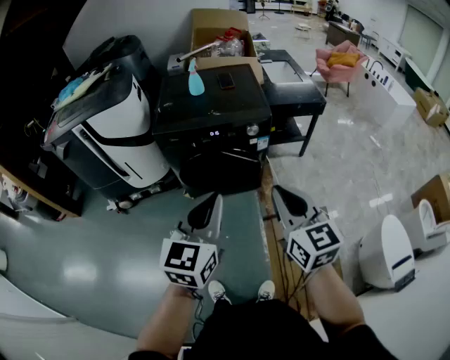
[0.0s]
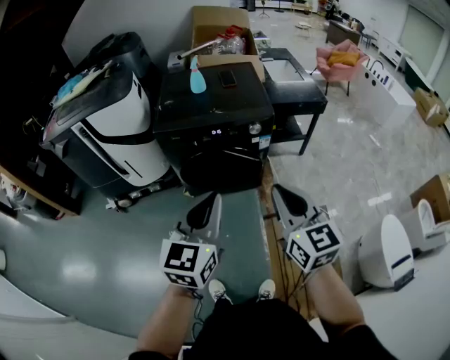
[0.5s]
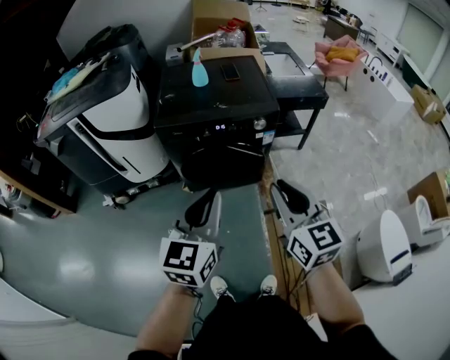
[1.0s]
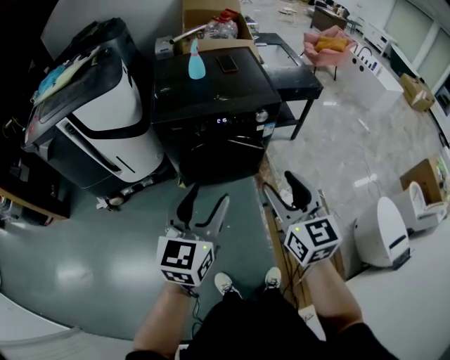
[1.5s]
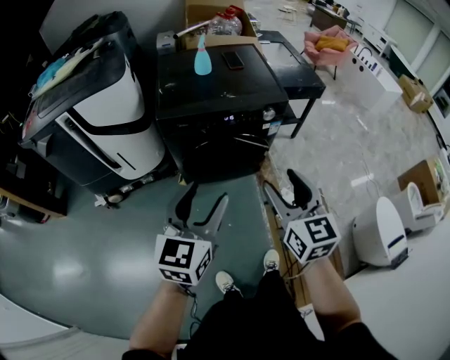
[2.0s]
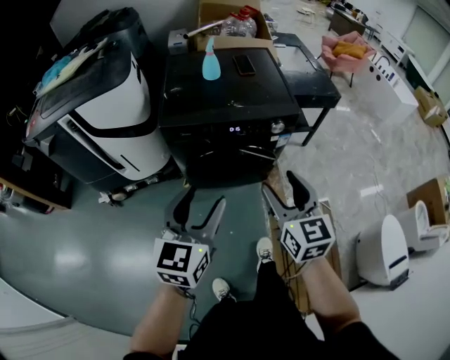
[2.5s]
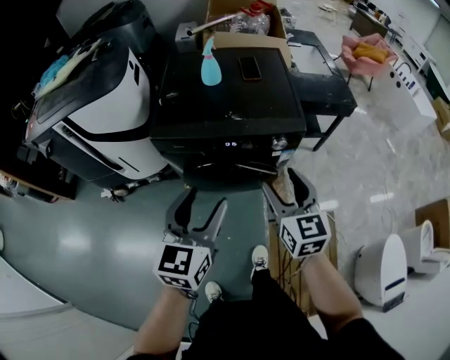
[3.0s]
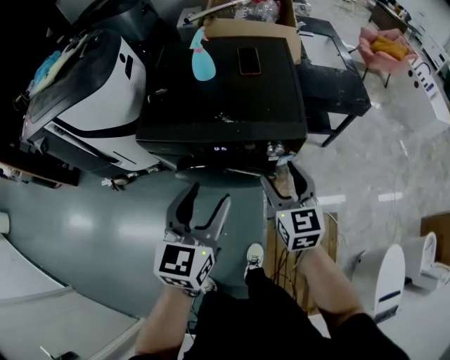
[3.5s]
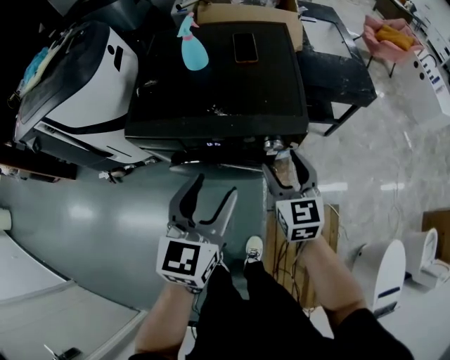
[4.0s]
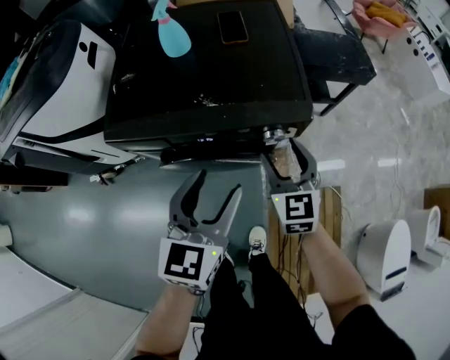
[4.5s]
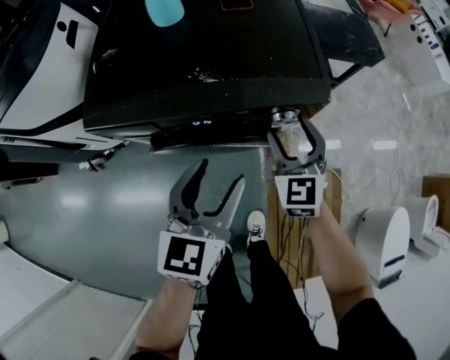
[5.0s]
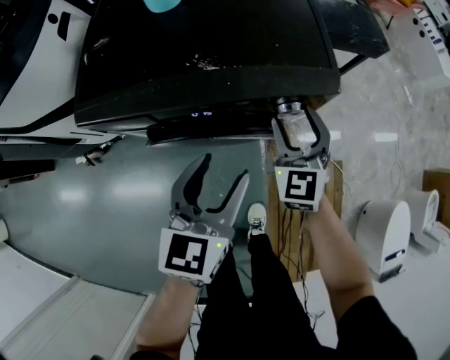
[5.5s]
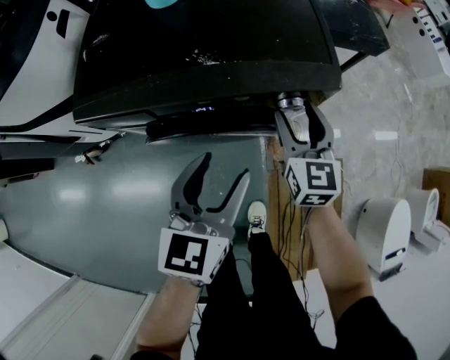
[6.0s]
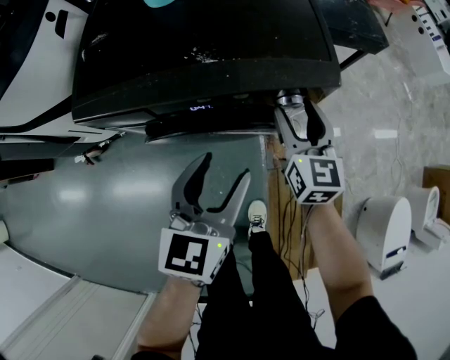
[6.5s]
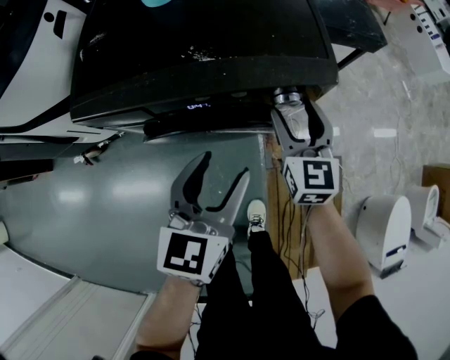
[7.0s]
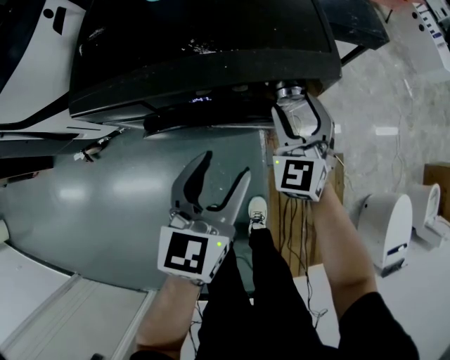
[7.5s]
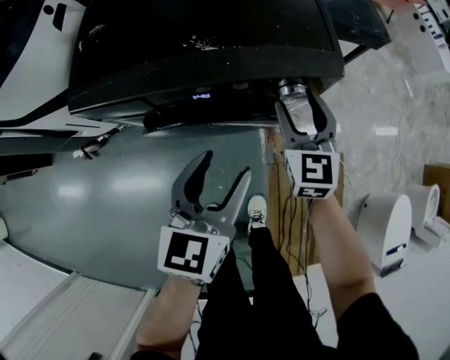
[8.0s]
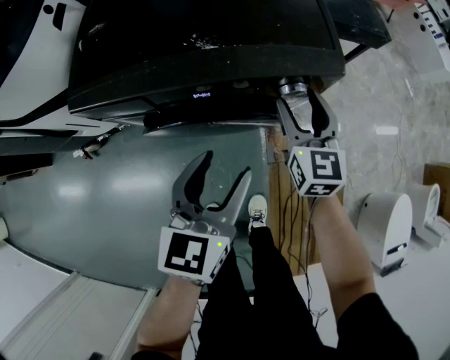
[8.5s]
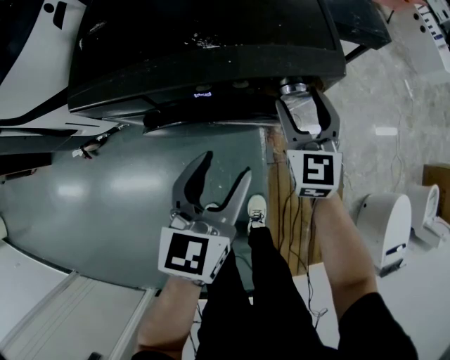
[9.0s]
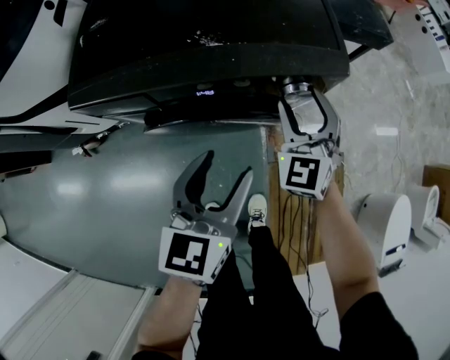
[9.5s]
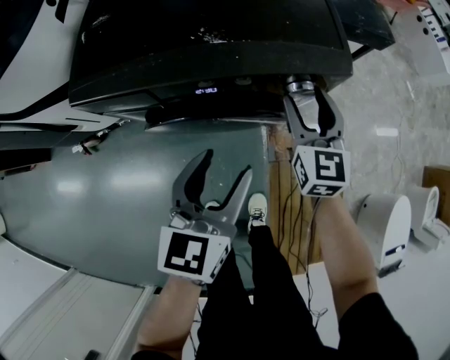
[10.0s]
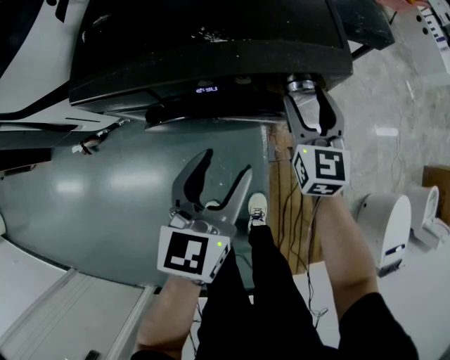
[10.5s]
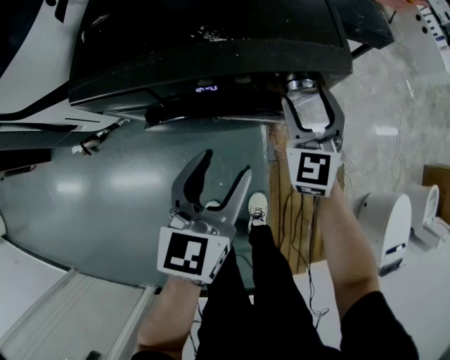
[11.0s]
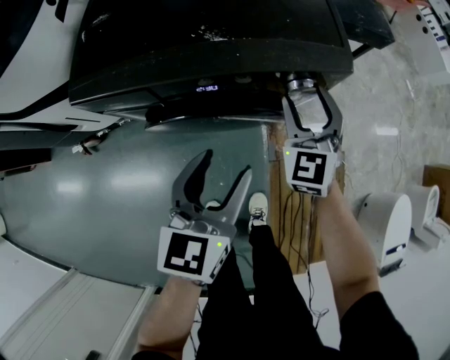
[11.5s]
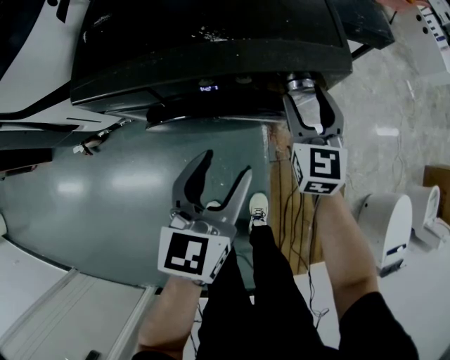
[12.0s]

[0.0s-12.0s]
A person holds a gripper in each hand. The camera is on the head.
0.0s to 2.0s: The right gripper goes roughly 15 cm to the left and forward, and opens. Meanwhile the left gripper goes about 15 cm to the left, and opens up.
2.0s to 4.0s: The right gripper shifts roughly 40 cm forward, downward and to the right. The left gripper is displaced forward and to the right by about 35 cm.
4.0s to 6.0s: The right gripper travels downward and forward by roughly 15 cm; the left gripper shifts approximately 15 cm downward.

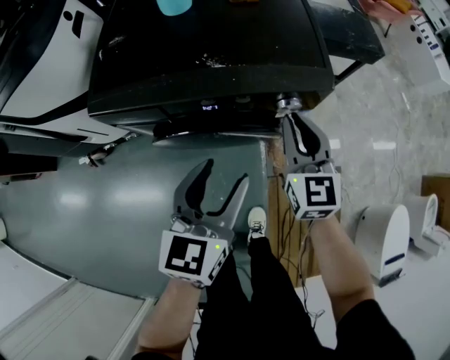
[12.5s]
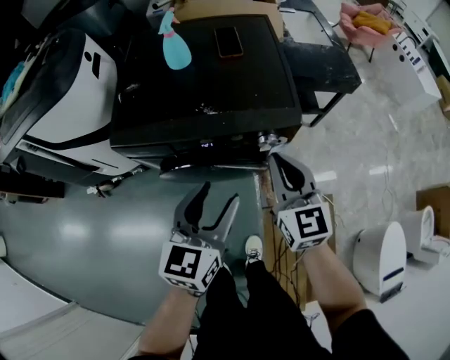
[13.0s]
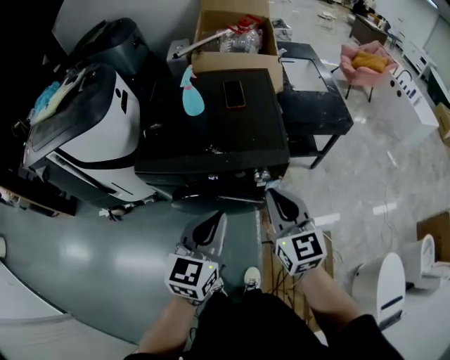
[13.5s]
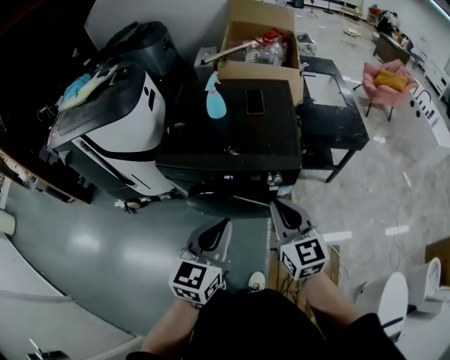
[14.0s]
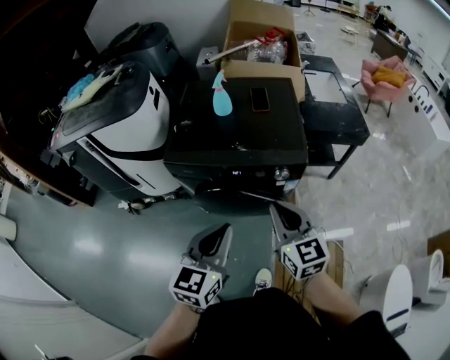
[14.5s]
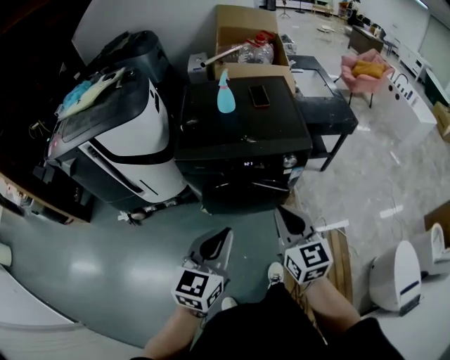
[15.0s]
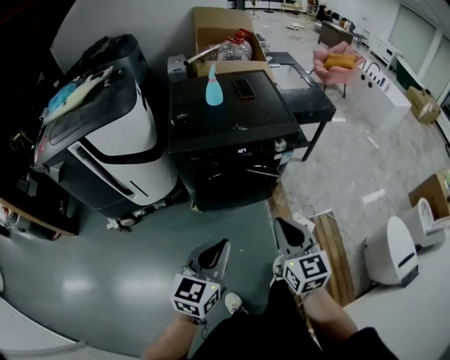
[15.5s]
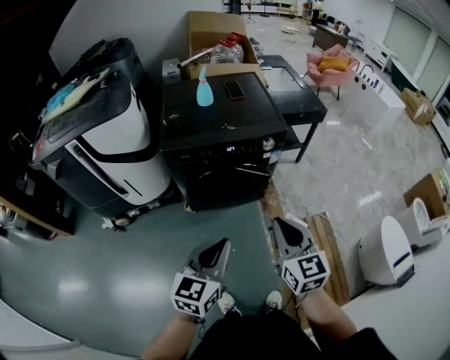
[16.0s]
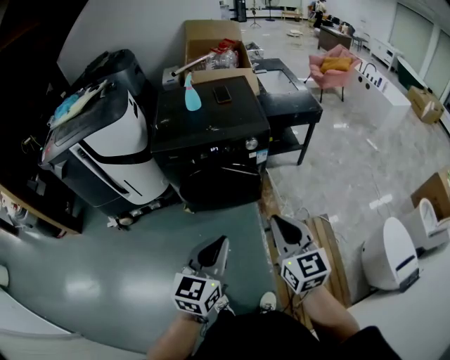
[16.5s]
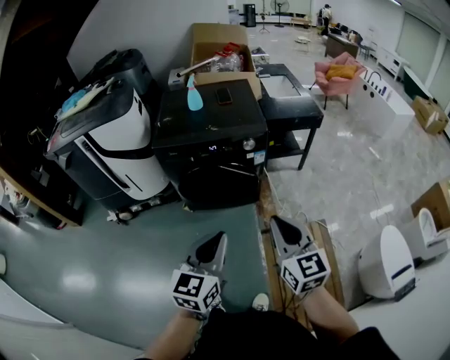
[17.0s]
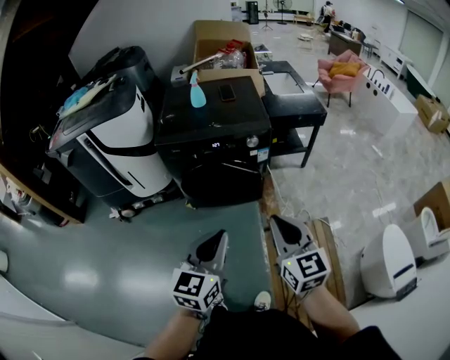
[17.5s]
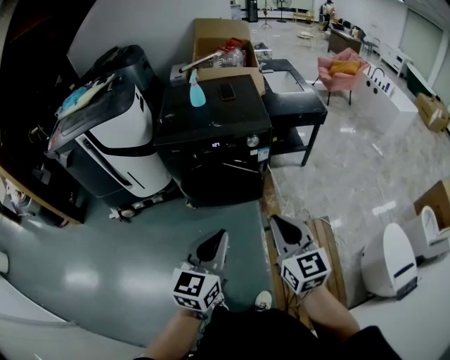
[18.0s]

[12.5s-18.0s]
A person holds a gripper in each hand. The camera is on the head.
12.5s to 14.5s: Both grippers move upward and backward, roughly 25 cm. The left gripper closes.
14.5s to 16.0s: The left gripper is displaced backward and to the left by about 20 cm. Meanwhile the right gripper heads backward, covering about 25 cm.
16.0s to 18.0s: Both grippers move to the right and backward, some 15 cm.

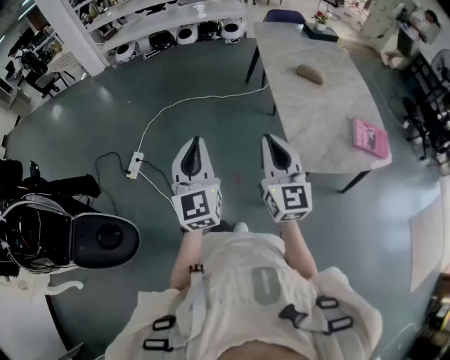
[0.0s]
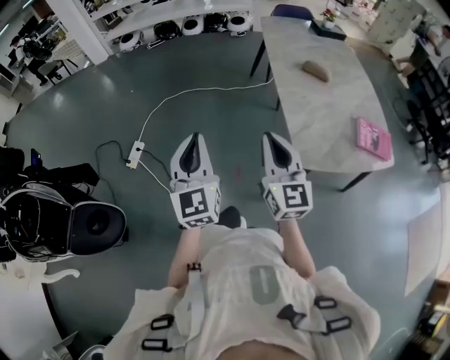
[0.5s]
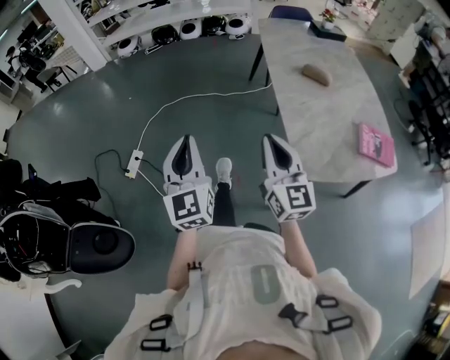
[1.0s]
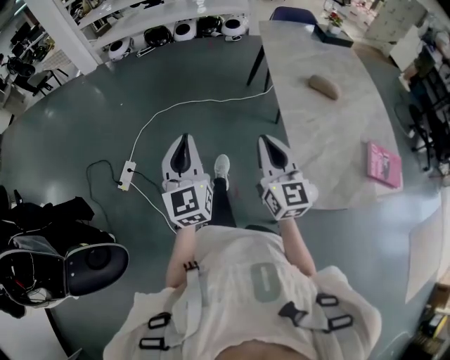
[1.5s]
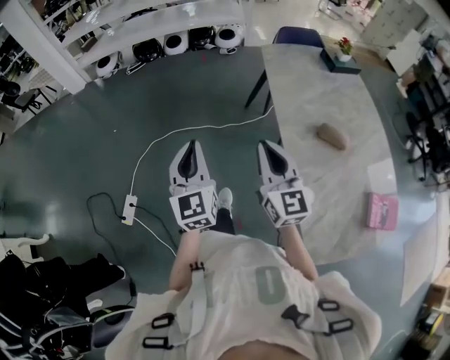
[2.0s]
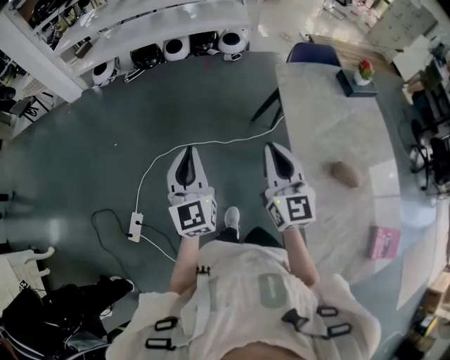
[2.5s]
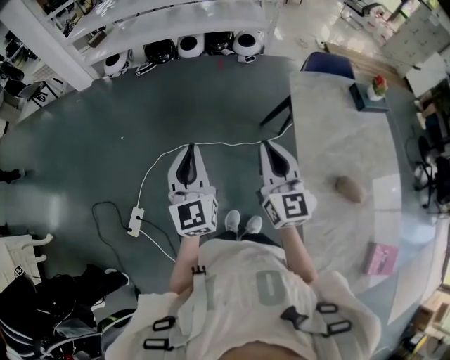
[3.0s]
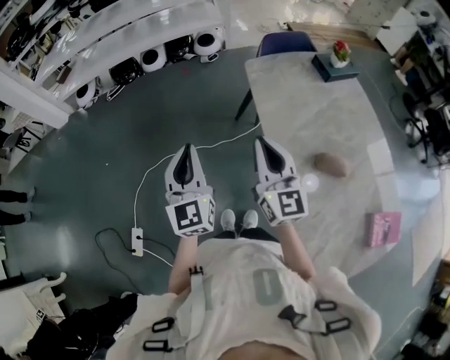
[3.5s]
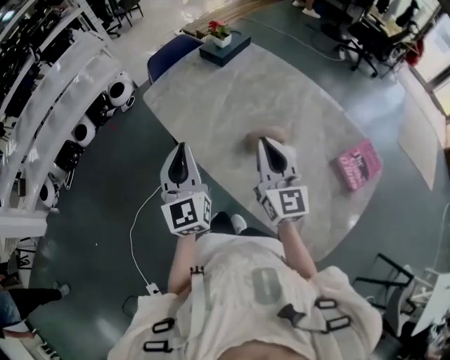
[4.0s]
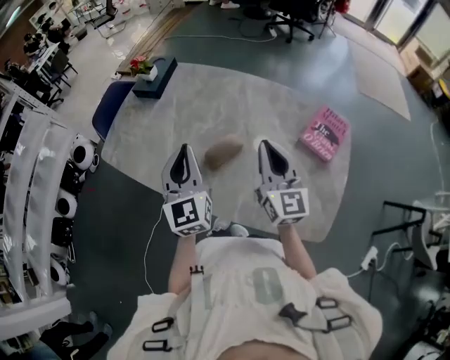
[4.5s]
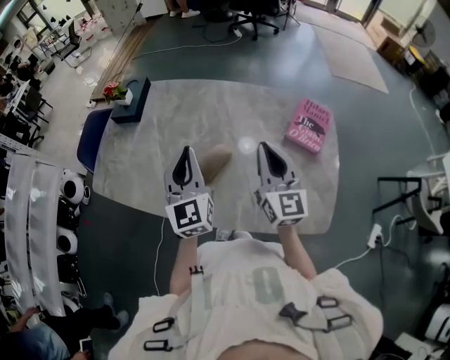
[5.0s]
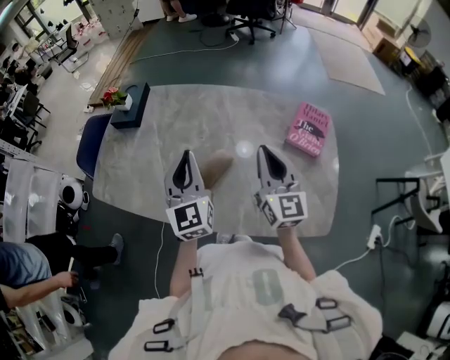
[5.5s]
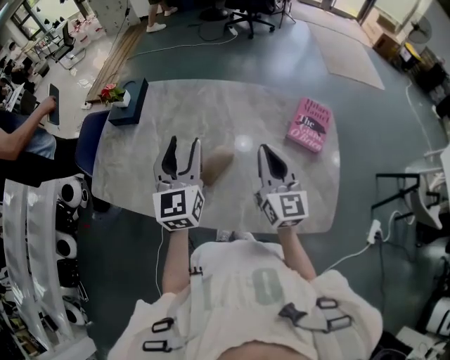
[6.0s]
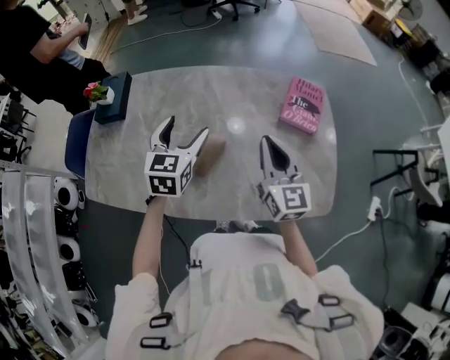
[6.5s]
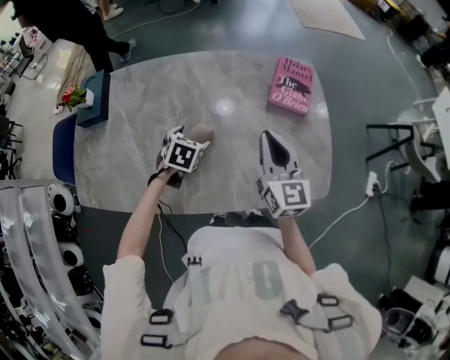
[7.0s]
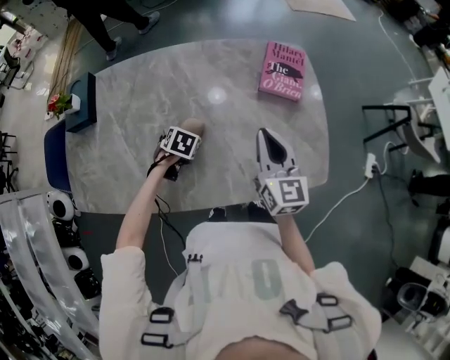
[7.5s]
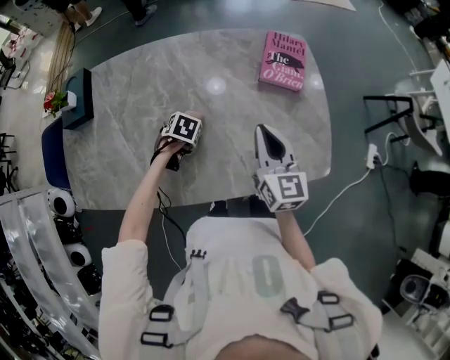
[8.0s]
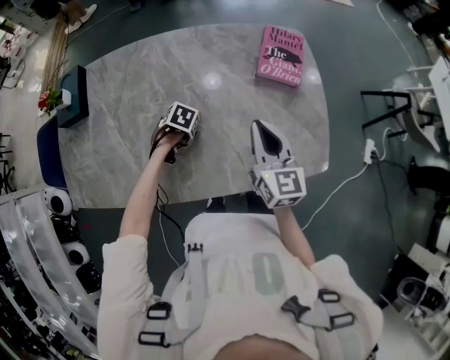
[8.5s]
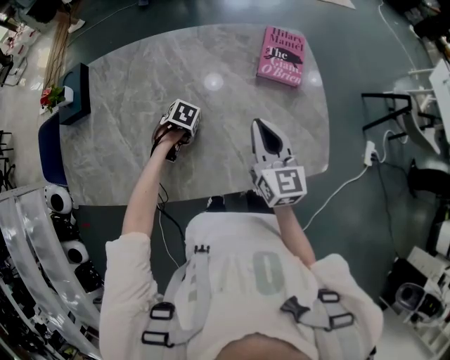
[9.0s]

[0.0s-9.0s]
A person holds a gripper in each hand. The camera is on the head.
0.0s to 2.0s: The pair of grippers is taken forward, roughly 40 cm.
2.0s to 4.5s: The left gripper moves about 50 cm, and swivels roughly 60 degrees. The right gripper moves approximately 40 cm, and swivels roughly 70 degrees.
4.5s to 7.0s: The left gripper moves downward, about 25 cm, tilts its fingers some 60 degrees downward, and opens, while the right gripper ends up approximately 10 cm from where it was, and swivels some 30 degrees.
7.0s to 9.0s: The left gripper moves downward, roughly 10 cm, and turns by about 30 degrees.
